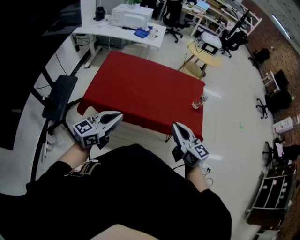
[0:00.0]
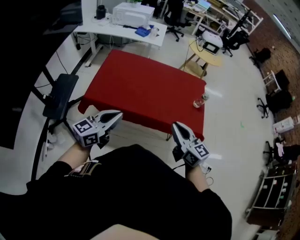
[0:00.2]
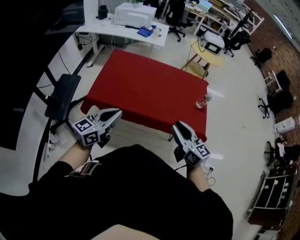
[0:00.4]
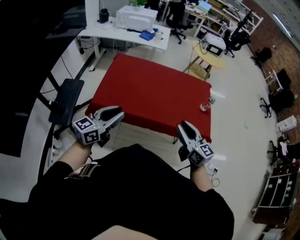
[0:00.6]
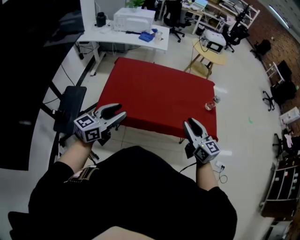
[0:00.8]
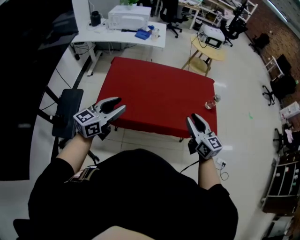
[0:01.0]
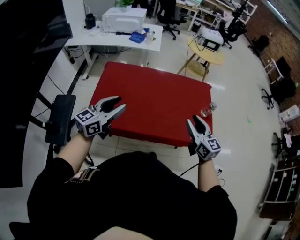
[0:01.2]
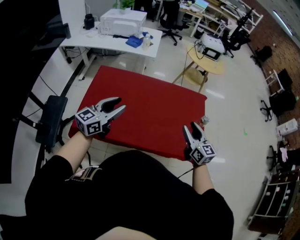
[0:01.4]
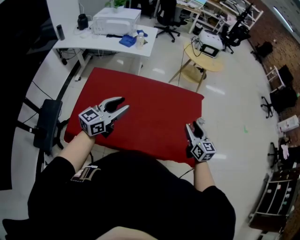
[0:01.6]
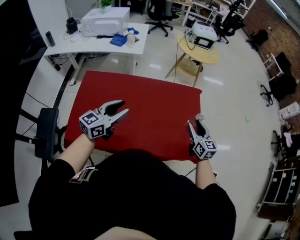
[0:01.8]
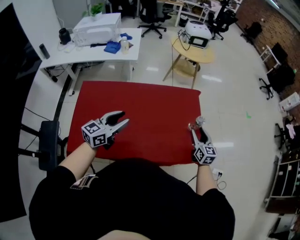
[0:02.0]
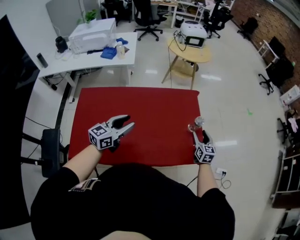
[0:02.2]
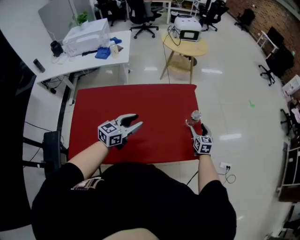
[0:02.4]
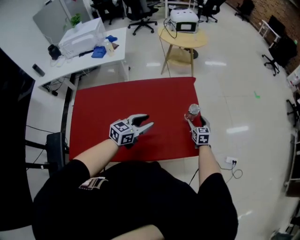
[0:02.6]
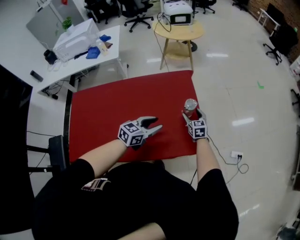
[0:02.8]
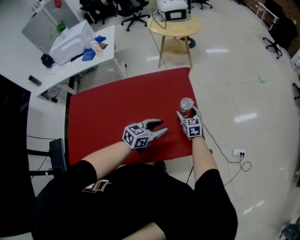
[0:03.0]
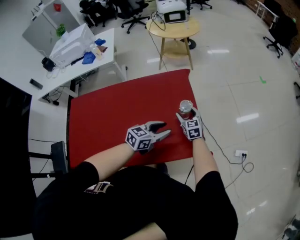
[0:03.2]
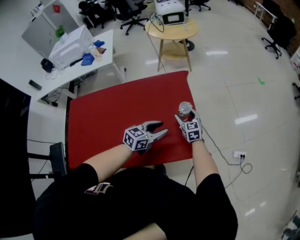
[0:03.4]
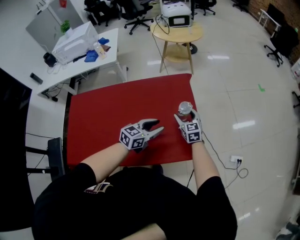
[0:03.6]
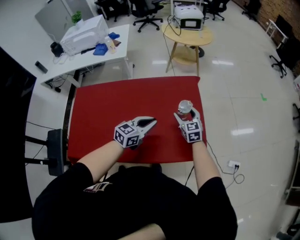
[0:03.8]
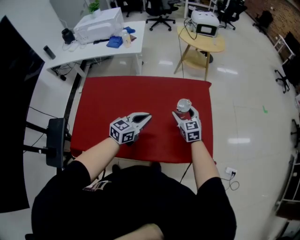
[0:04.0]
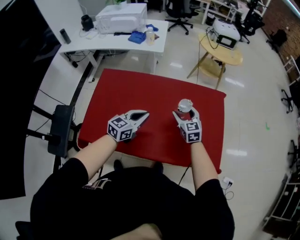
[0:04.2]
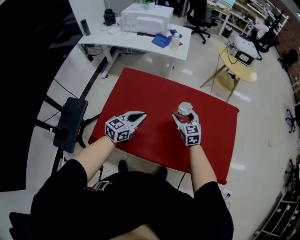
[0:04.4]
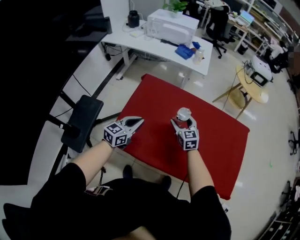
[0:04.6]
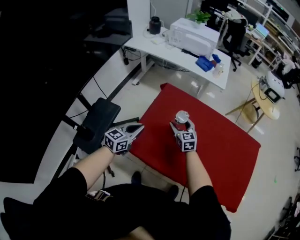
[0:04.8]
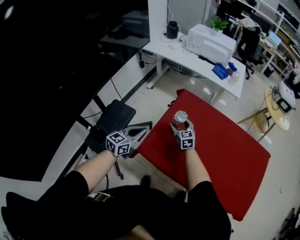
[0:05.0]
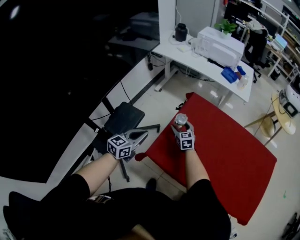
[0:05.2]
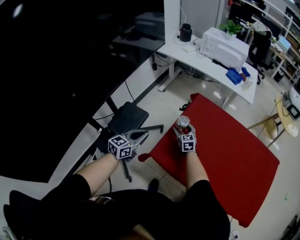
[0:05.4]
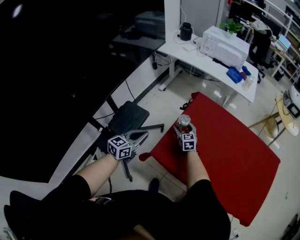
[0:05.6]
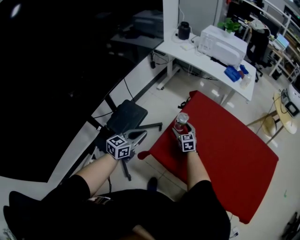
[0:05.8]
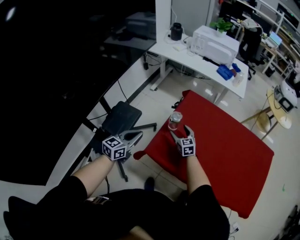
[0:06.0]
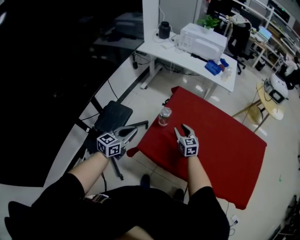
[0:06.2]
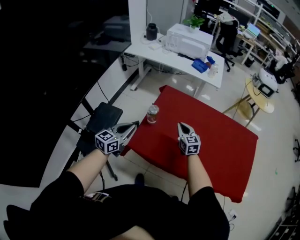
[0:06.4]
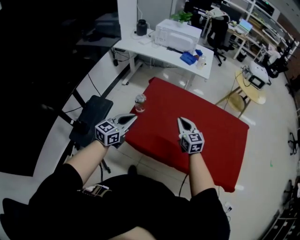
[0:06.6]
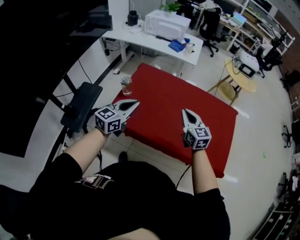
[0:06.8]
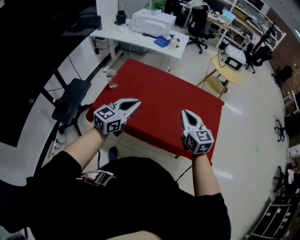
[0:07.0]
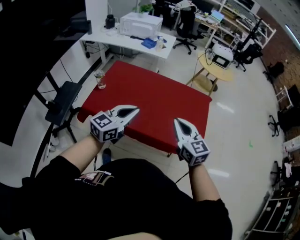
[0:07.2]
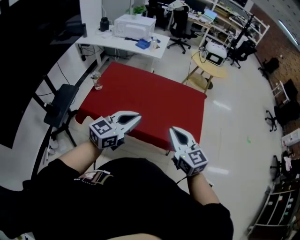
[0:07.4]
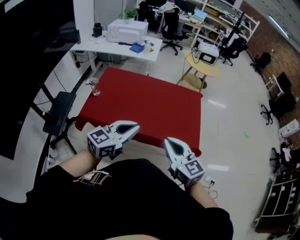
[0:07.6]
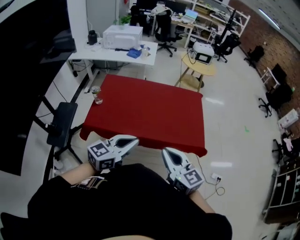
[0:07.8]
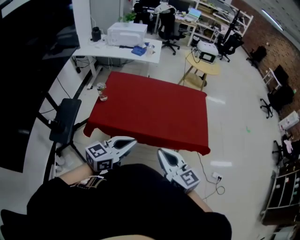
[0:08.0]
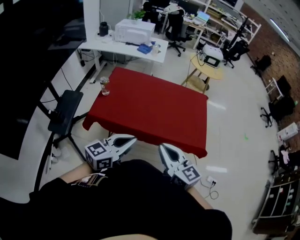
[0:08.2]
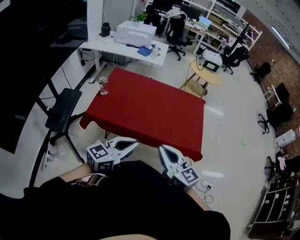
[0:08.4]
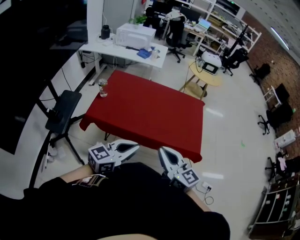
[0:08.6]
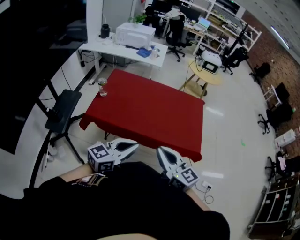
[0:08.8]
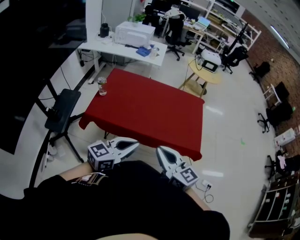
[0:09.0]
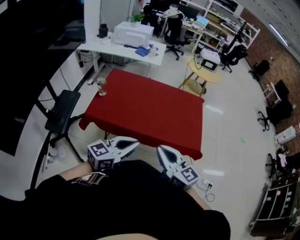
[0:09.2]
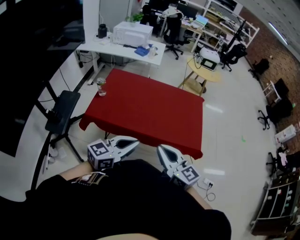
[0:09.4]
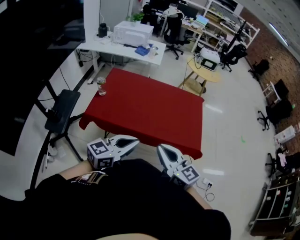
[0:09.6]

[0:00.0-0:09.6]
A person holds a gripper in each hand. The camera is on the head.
0:00.0 to 0:01.6: The left gripper heads forward, covering approximately 35 cm, and opens its fingers. The right gripper is displaced forward and to the right by approximately 35 cm, rotates some 20 degrees, and opens its fingers.
0:01.6 to 0:03.2: The right gripper goes approximately 30 cm downward and forward, turns by about 20 degrees, and opens its fingers. The left gripper goes approximately 40 cm to the right, downward and forward, and rotates some 40 degrees.
0:03.2 to 0:04.8: The two grippers travel together, roughly 70 cm. The right gripper rotates approximately 40 degrees. Meanwhile the left gripper changes its angle by some 50 degrees, and closes its fingers.
0:04.8 to 0:06.4: The right gripper shifts roughly 5 cm backward, travels to the left and back again, about 20 cm each way, and closes its fingers. Meanwhile the left gripper goes approximately 10 cm to the left and backward.
0:06.4 to 0:08.0: The pair of grippers is taken backward and to the right, about 50 cm. The right gripper goes about 25 cm upward. The left gripper swivels approximately 30 degrees.
0:08.0 to 0:09.6: There are only small adjustments of the grippers.

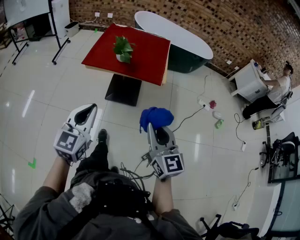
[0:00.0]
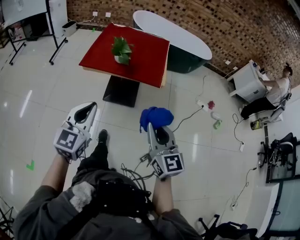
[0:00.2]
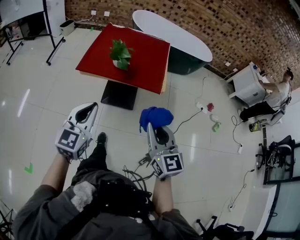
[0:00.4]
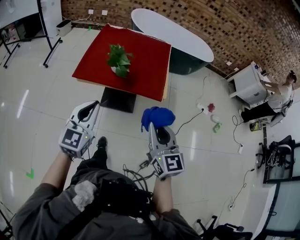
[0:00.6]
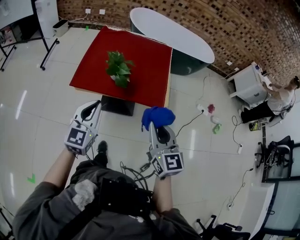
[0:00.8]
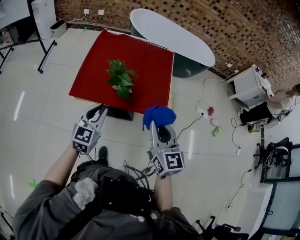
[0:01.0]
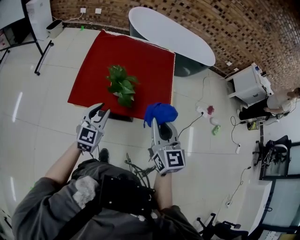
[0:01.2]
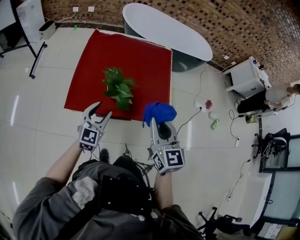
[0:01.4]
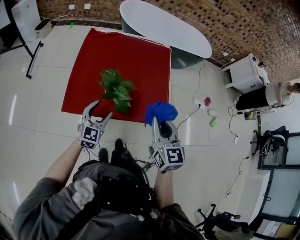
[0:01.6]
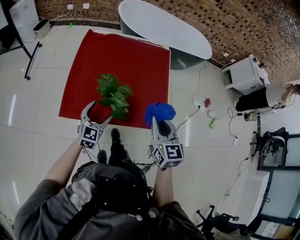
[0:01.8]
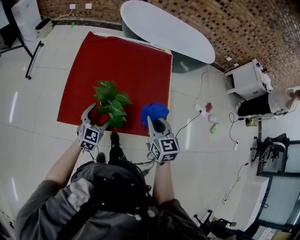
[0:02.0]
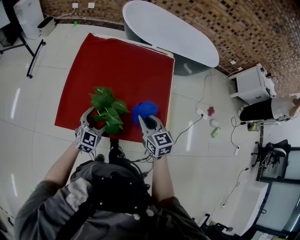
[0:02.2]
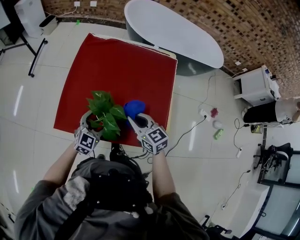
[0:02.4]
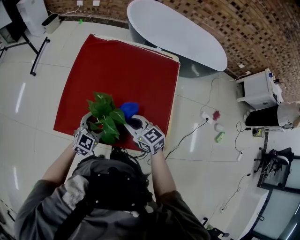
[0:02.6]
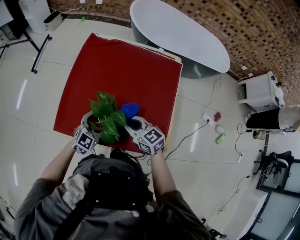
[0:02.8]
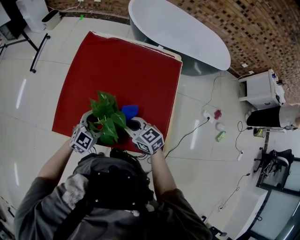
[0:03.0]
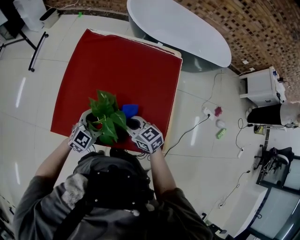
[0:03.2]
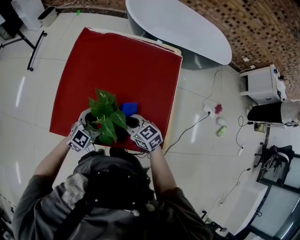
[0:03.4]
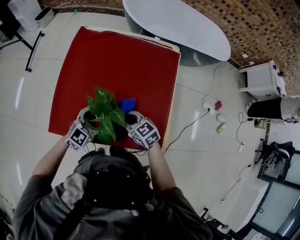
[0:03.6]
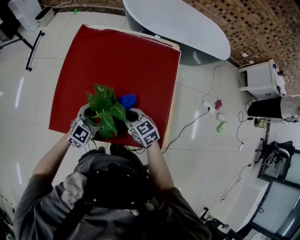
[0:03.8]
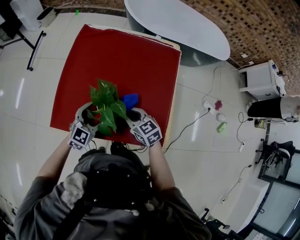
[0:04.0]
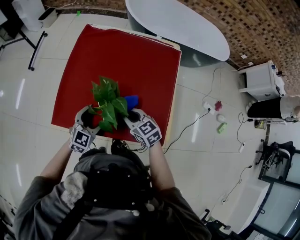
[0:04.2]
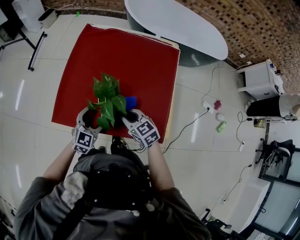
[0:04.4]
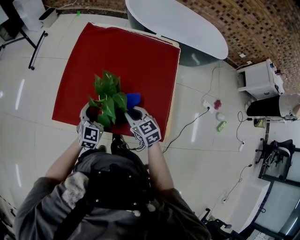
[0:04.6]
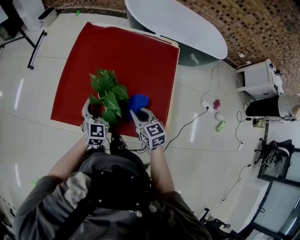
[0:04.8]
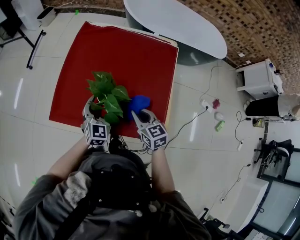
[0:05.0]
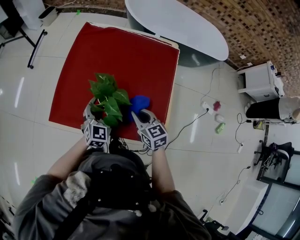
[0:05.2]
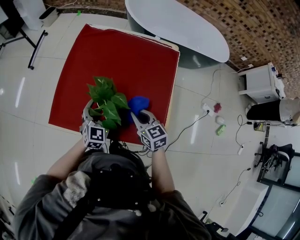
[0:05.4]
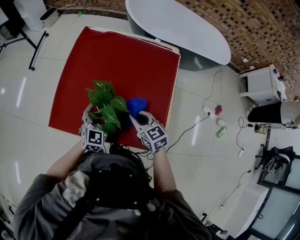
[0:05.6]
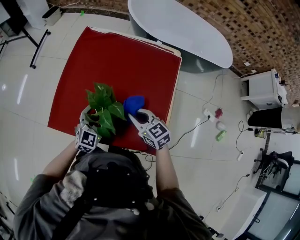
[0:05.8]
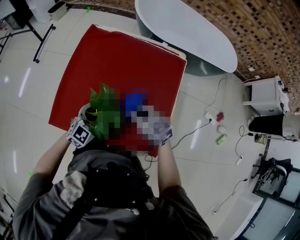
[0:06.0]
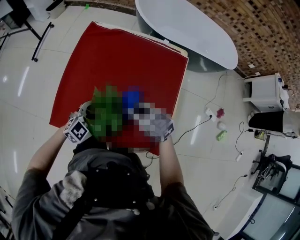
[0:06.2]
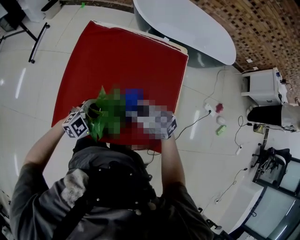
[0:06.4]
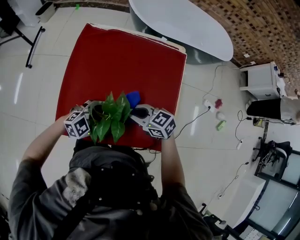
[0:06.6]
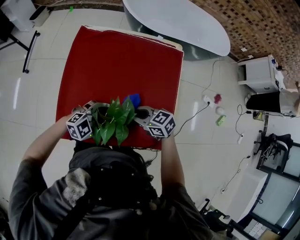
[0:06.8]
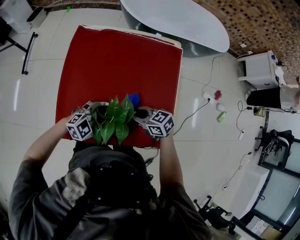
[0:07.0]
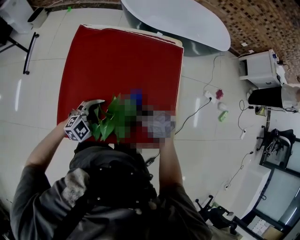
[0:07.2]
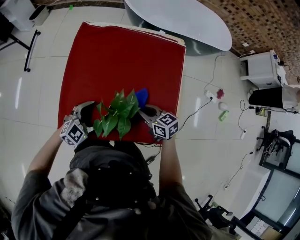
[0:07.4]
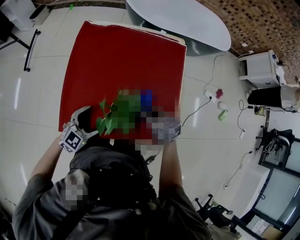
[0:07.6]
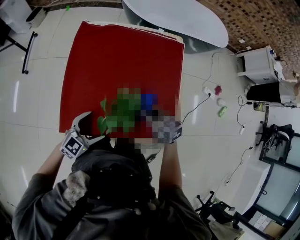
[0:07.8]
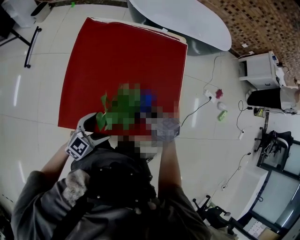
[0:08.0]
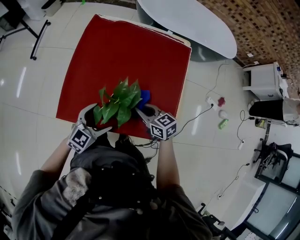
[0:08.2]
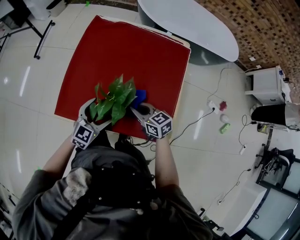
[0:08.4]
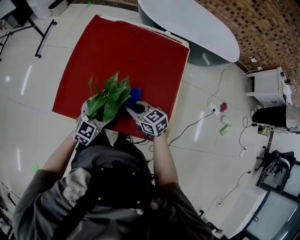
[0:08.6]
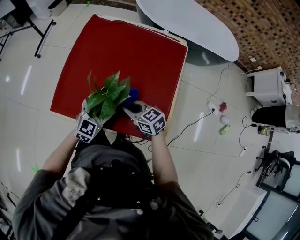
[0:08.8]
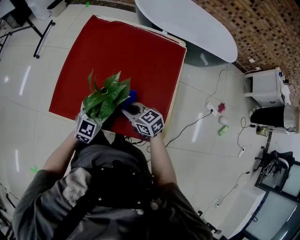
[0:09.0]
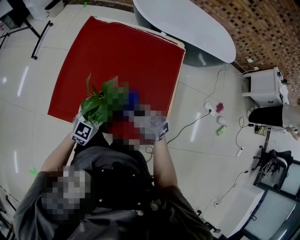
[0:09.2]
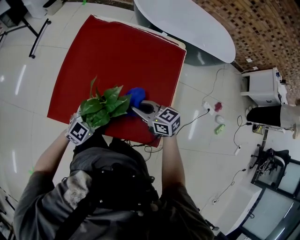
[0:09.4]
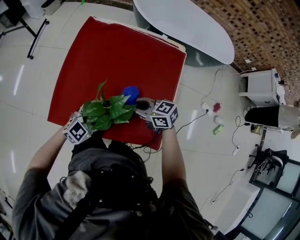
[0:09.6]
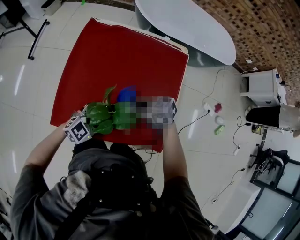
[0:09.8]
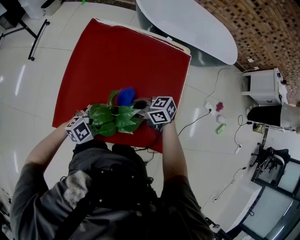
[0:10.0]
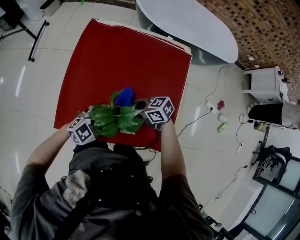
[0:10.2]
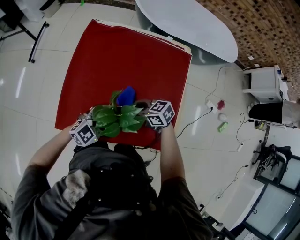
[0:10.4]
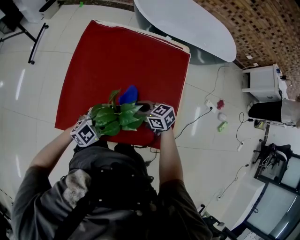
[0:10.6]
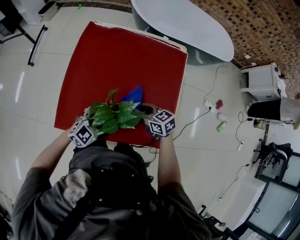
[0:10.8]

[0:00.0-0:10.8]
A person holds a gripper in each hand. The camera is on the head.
0:00.0 to 0:01.6: Both grippers are carried forward, approximately 60 cm. The left gripper opens its fingers.
0:01.6 to 0:03.0: The left gripper goes about 20 cm forward, downward and to the right, while the right gripper travels downward and forward by about 30 cm, and swivels roughly 50 degrees.
0:03.0 to 0:04.6: The grippers move only a little.
0:04.6 to 0:06.2: The left gripper changes its angle by approximately 30 degrees. The right gripper heads forward, covering about 10 cm, and rotates some 20 degrees.
0:06.2 to 0:07.8: The right gripper turns by about 30 degrees, while the left gripper moves roughly 10 cm.
0:07.8 to 0:09.2: The left gripper moves about 10 cm, and turns by some 20 degrees.
0:09.2 to 0:10.8: The right gripper changes place by roughly 5 cm, while the left gripper rotates roughly 20 degrees.

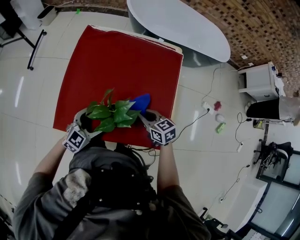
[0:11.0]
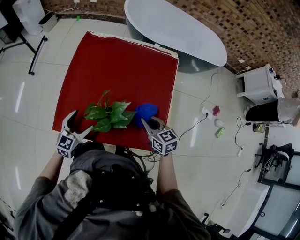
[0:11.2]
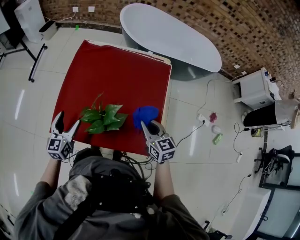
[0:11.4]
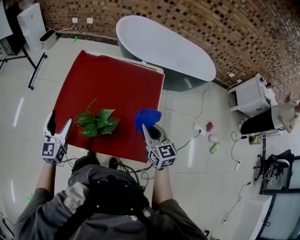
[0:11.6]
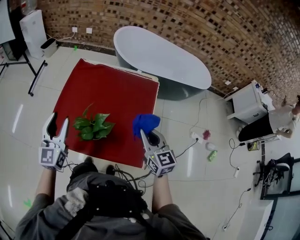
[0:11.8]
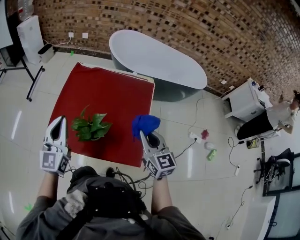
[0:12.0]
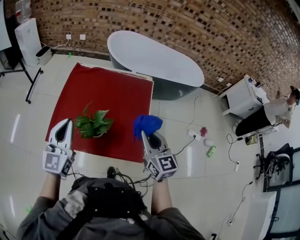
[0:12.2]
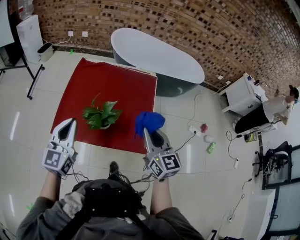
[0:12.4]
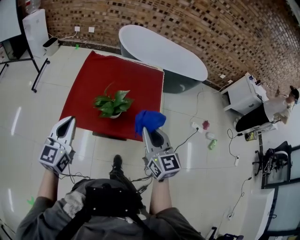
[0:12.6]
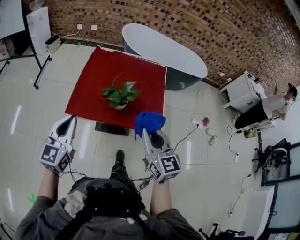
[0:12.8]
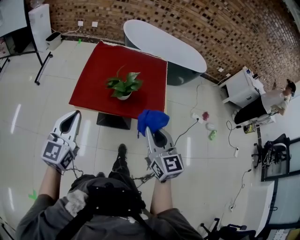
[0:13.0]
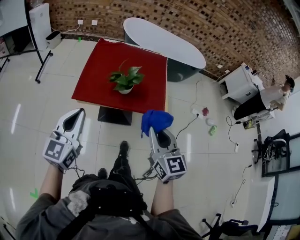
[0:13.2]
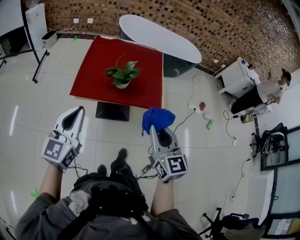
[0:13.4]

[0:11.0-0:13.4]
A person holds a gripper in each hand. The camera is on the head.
0:11.0 to 0:12.2: The right gripper is displaced upward, backward and to the right by about 35 cm, and changes its angle by some 40 degrees. Meanwhile the left gripper moves upward, roughly 30 cm, turns by roughly 50 degrees, and closes up.
0:12.2 to 0:13.4: The grippers both shift backward and to the left by approximately 40 cm.
